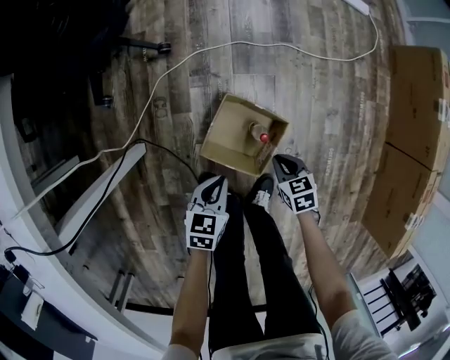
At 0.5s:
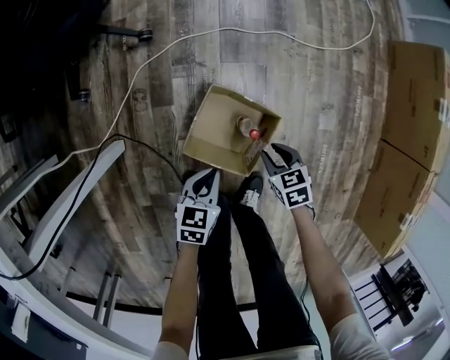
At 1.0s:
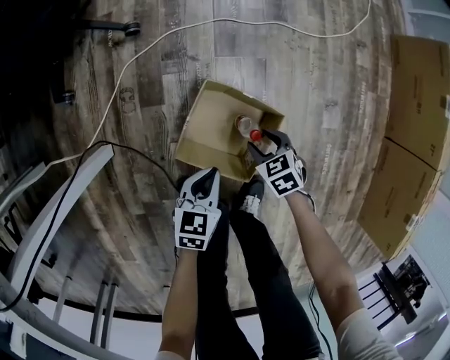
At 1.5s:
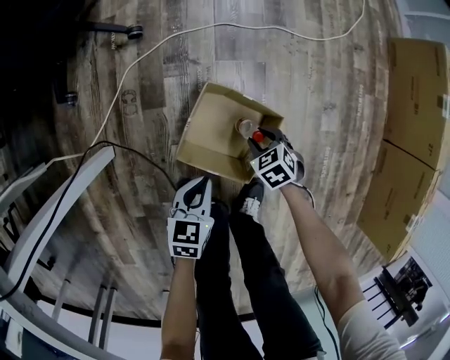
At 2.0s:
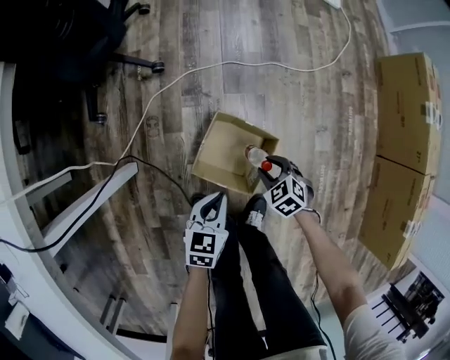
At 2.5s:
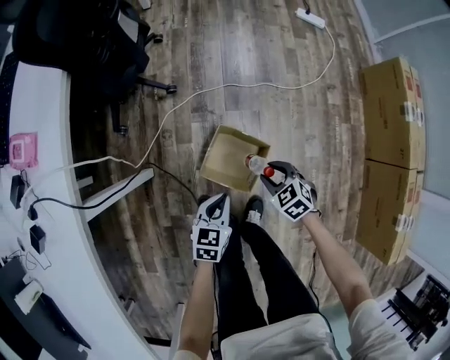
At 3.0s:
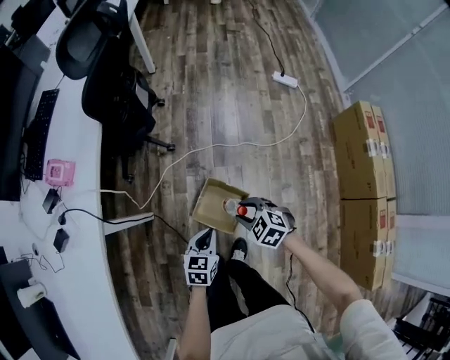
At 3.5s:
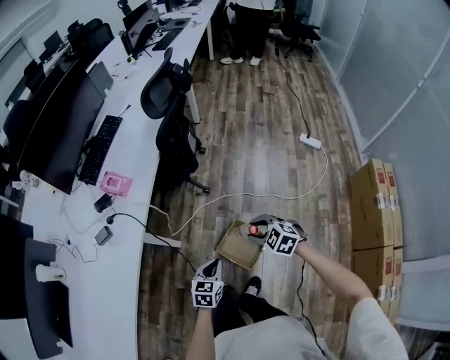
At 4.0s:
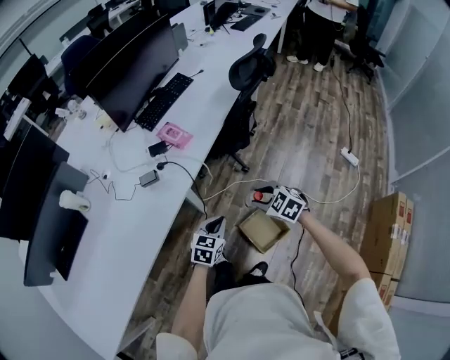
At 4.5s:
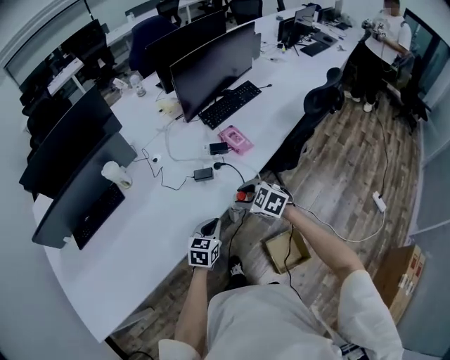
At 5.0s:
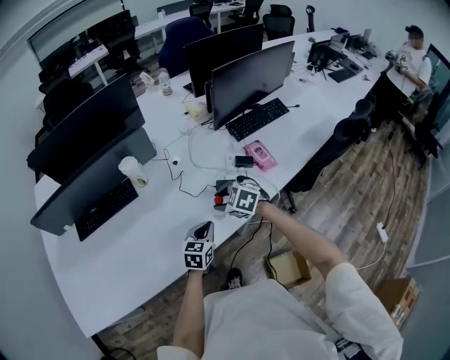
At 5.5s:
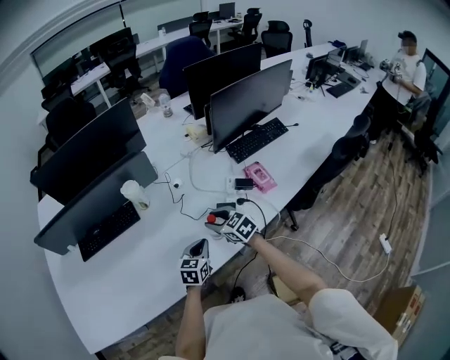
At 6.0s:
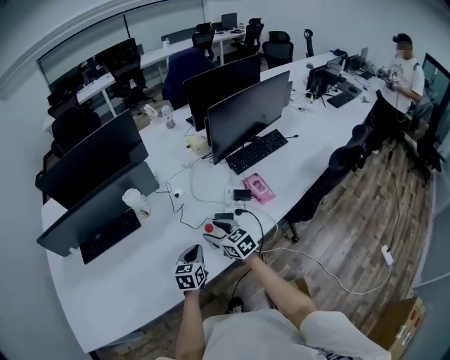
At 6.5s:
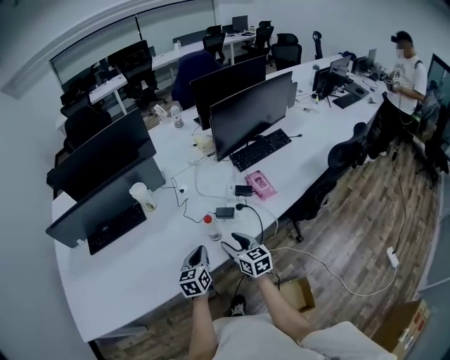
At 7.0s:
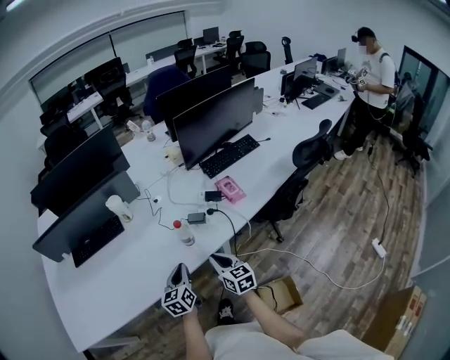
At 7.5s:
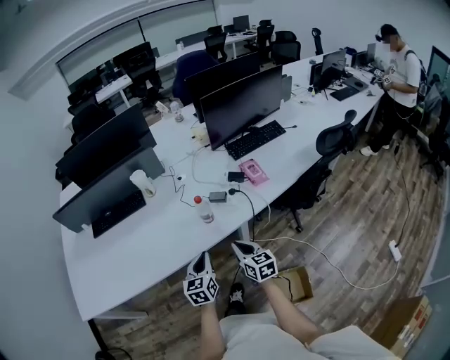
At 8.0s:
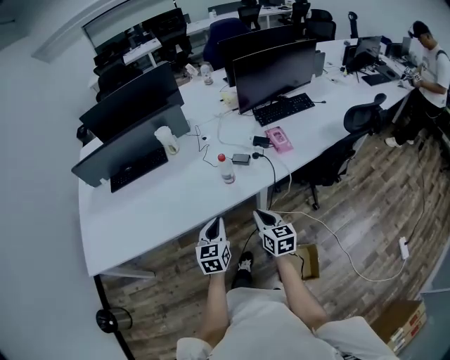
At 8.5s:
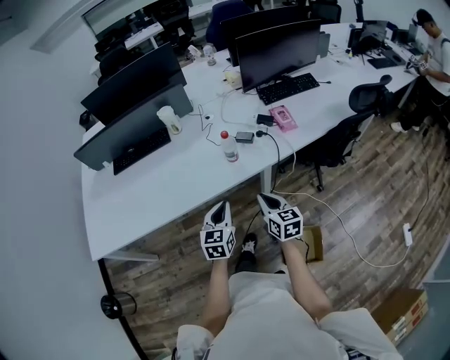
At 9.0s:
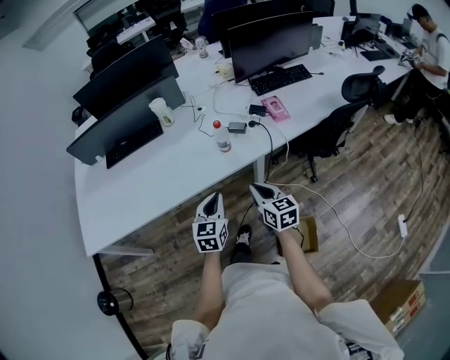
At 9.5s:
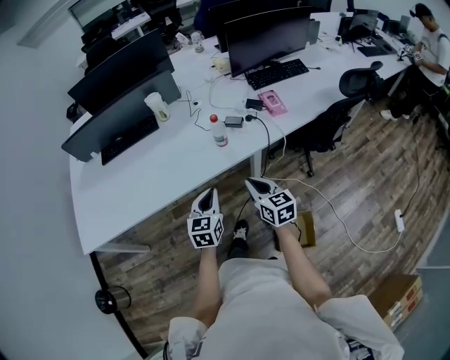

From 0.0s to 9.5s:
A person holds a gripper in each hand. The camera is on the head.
From 0.0s to 2.0s: The right gripper travels downward and back again, approximately 15 cm each way, swivels approximately 30 degrees, and opens. Meanwhile the left gripper reaches about 15 cm downward, then returns.
From 2.0s to 4.0s: The grippers both shift upward by about 50 cm. The left gripper turns by approximately 30 degrees. The right gripper rotates approximately 50 degrees.
From 4.0s to 5.5s: The right gripper ends up about 50 cm from where it was, and swivels approximately 30 degrees; the left gripper changes place by about 40 cm, and turns by some 40 degrees.
From 5.5s to 7.5s: The left gripper travels backward by roughly 20 cm, and swivels some 20 degrees. The right gripper goes some 25 cm backward and to the right, changes its angle by approximately 30 degrees, and closes up.
From 7.5s to 9.5s: Both grippers travel together backward, approximately 5 cm.

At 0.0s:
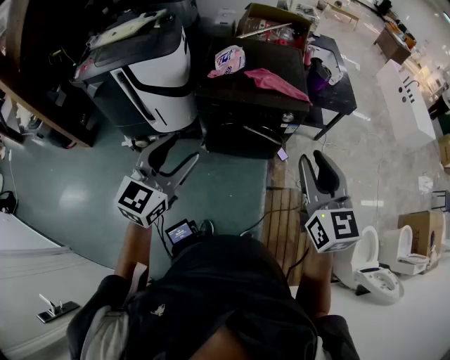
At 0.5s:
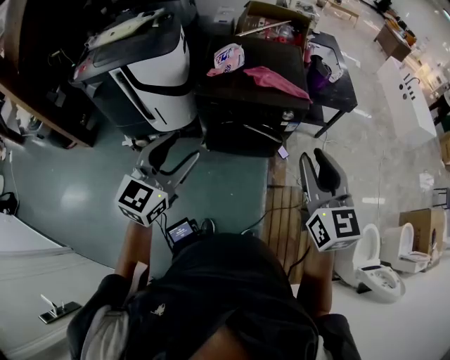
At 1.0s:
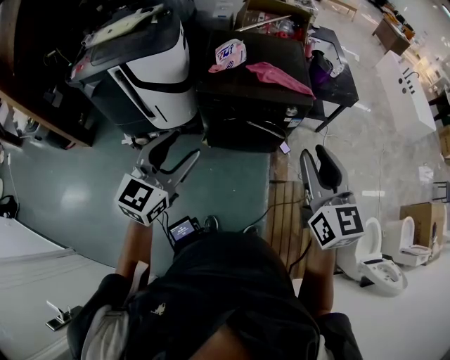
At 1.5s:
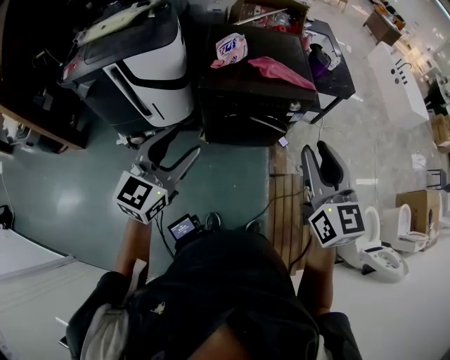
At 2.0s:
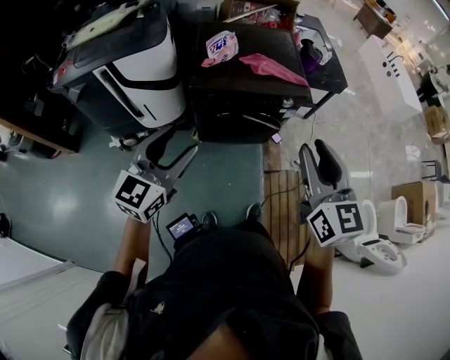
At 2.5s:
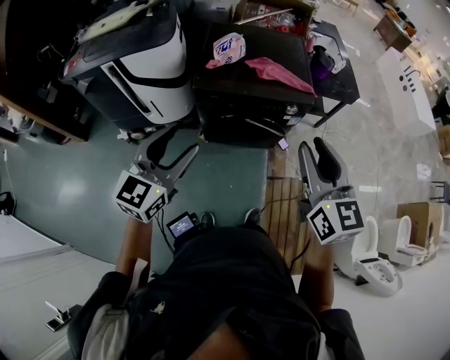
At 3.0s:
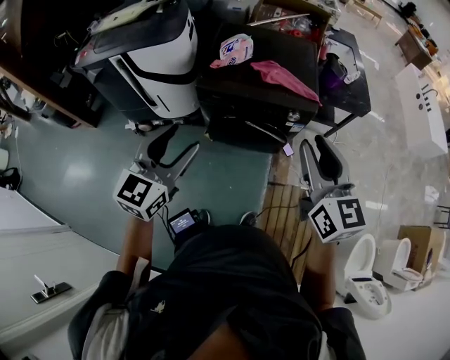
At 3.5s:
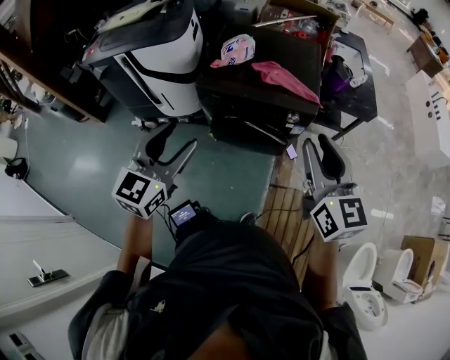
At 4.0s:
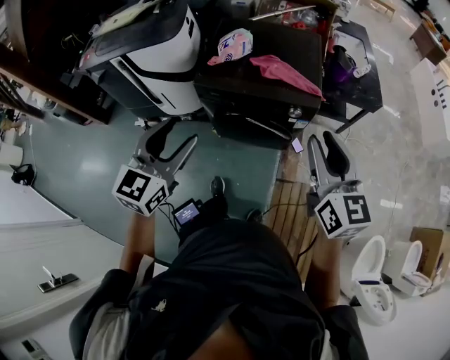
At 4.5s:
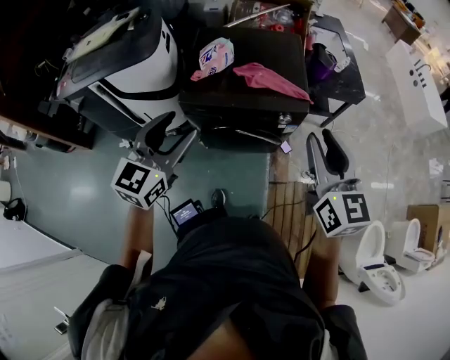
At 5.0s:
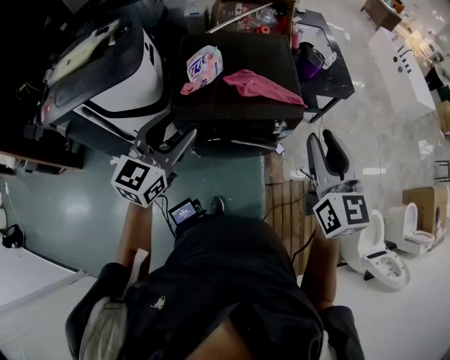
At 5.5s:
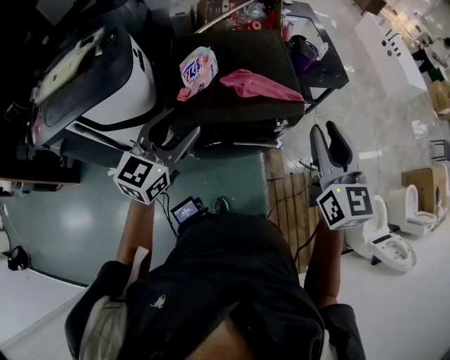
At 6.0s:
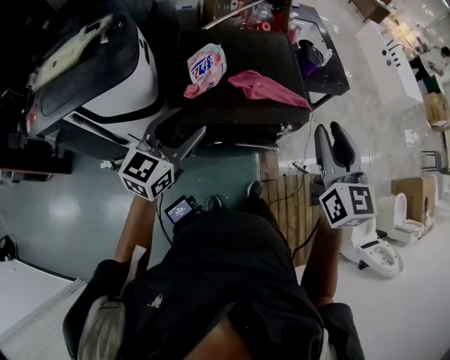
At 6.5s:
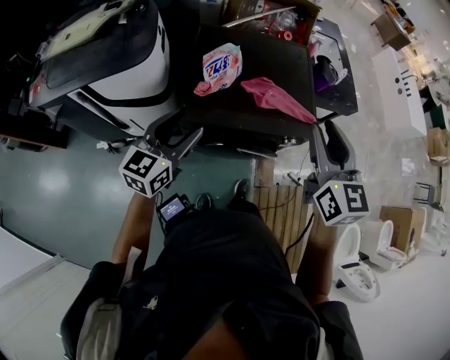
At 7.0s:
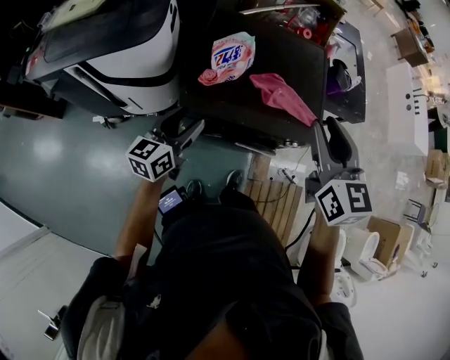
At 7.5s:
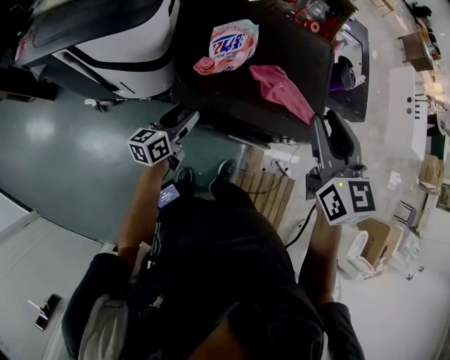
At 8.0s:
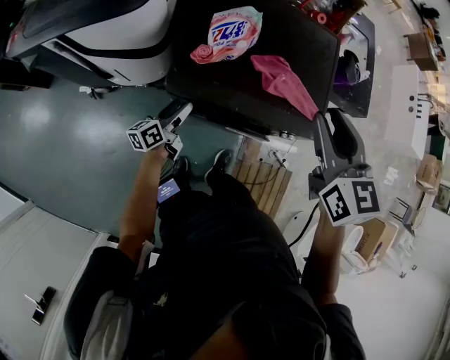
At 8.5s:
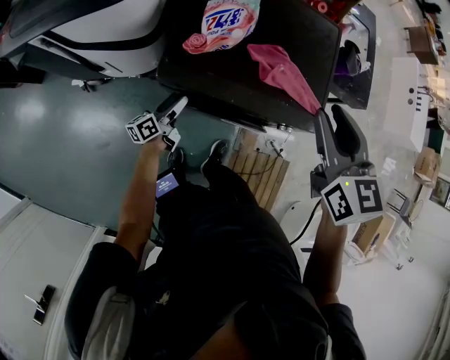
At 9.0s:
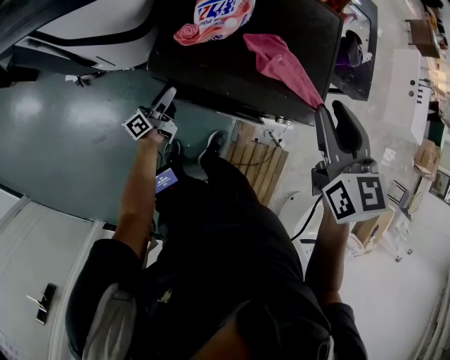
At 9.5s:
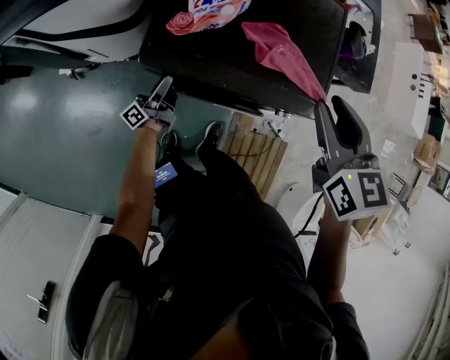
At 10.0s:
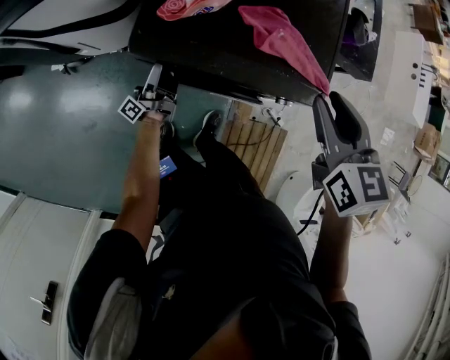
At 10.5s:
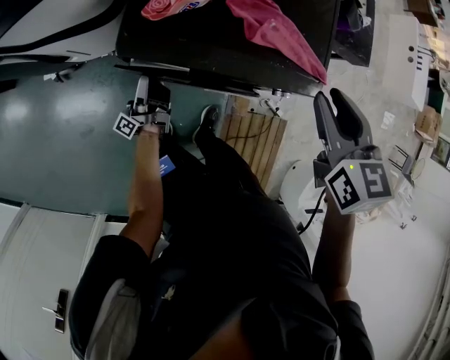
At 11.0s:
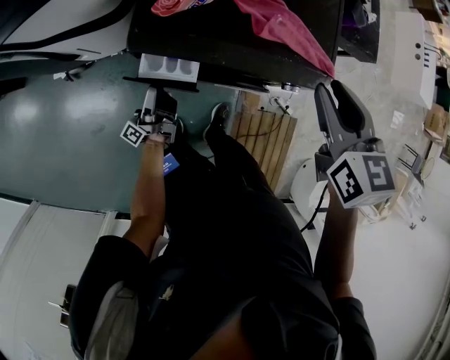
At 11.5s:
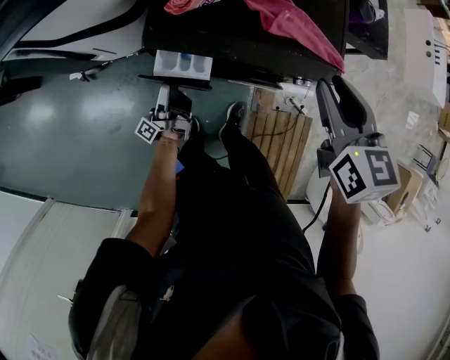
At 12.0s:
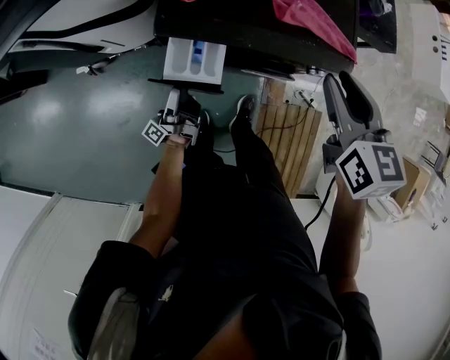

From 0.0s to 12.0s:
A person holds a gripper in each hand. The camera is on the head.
From 0.0s to 2.0s: The grippers both shift to the left by some 5 cm.
From 2.0s to 4.0s: The right gripper moves to the right and forward, some 20 cm, while the left gripper moves to the right, approximately 15 cm.
From 4.0s to 6.0s: Both grippers move forward and to the left, roughly 20 cm. The right gripper rotates about 20 degrees, while the left gripper rotates approximately 20 degrees.
From 6.0s to 8.0s: The right gripper goes some 20 cm forward, downward and to the left, and rotates roughly 30 degrees. The left gripper moves downward, roughly 30 cm, and twists some 50 degrees counterclockwise, seen from behind.
From 8.0s to 10.0s: The right gripper moves downward, about 10 cm. Meanwhile the left gripper goes approximately 5 cm downward, and angles its fingers upward, by about 30 degrees.
From 10.0s to 12.0s: The right gripper travels backward by about 5 cm. The left gripper heads backward, covering about 15 cm.

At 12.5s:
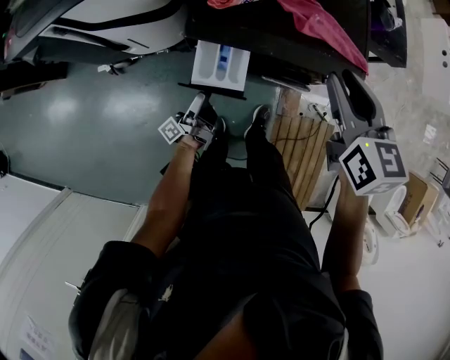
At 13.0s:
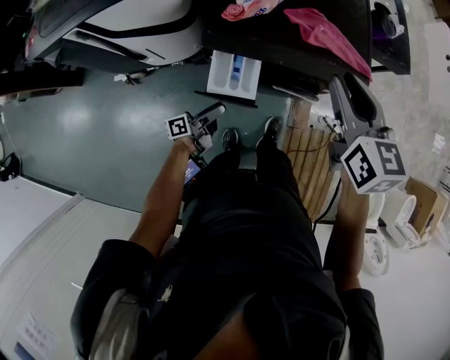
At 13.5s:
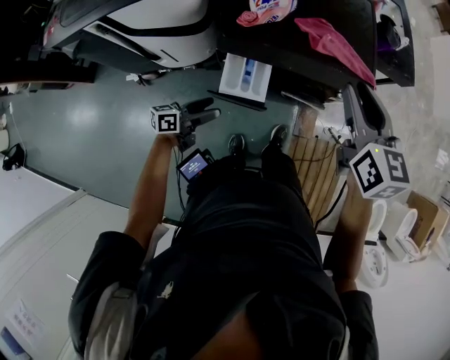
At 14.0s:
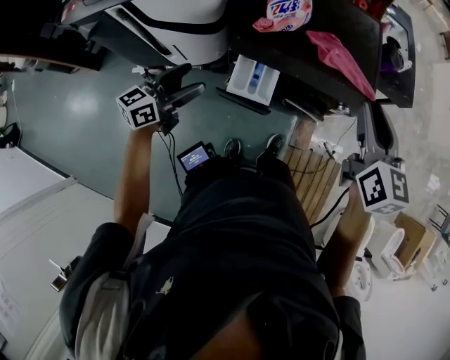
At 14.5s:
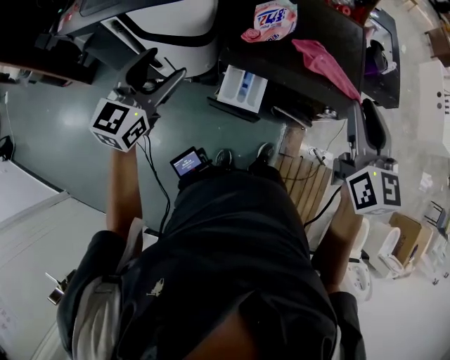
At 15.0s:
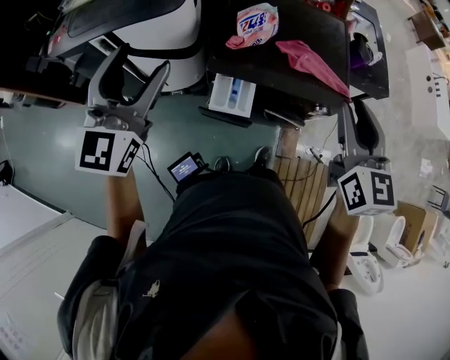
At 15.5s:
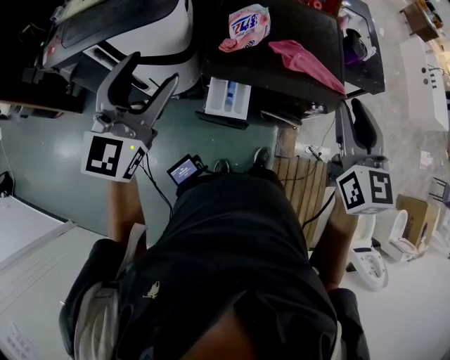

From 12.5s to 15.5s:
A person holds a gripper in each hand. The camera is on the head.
From 12.5s to 14.0s: The right gripper heads upward, covering about 10 cm, while the left gripper goes roughly 25 cm upward and to the left, and rotates around the line of its fingers by some 60 degrees, clockwise from behind.
From 14.0s to 15.5s: The right gripper goes approximately 5 cm upward, while the left gripper heads upward, covering roughly 25 cm, and twists roughly 40 degrees clockwise, seen from behind.

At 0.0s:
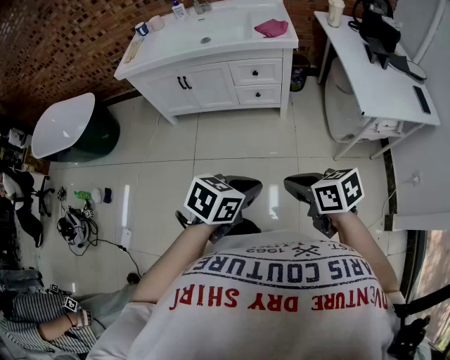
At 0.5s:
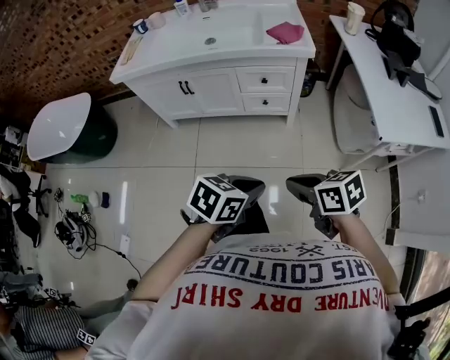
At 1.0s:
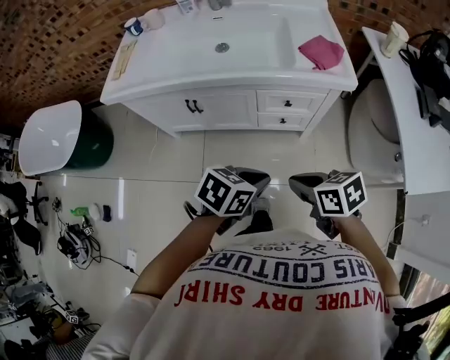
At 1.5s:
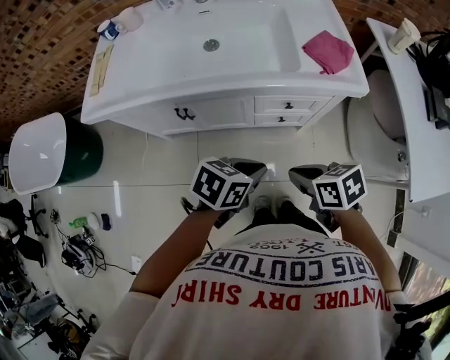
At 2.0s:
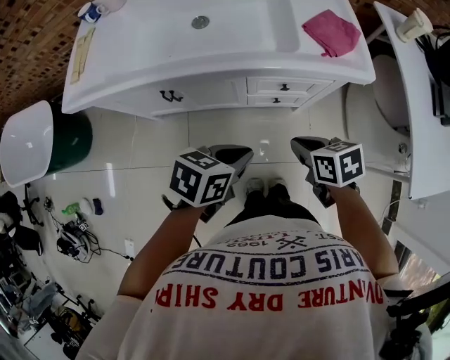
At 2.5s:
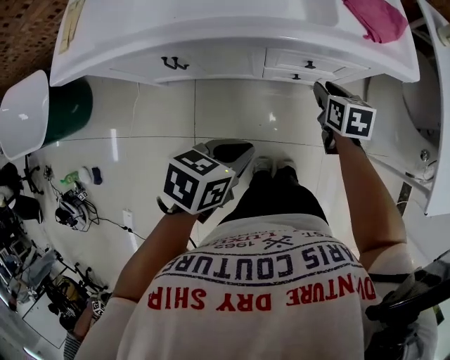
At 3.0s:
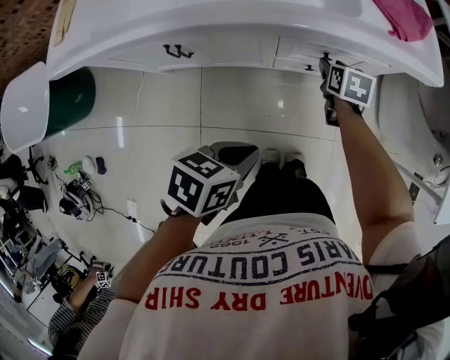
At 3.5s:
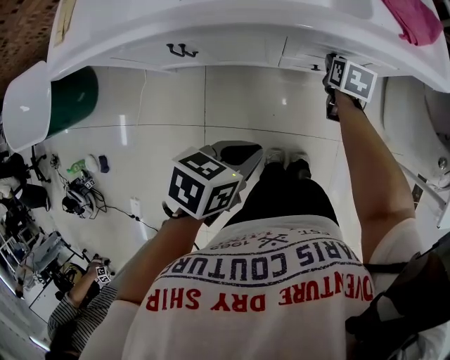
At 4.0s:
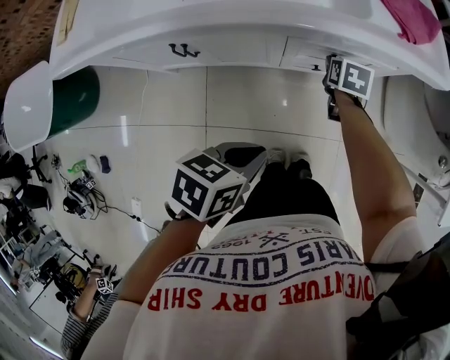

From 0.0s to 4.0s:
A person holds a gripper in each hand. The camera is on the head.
From 0.0s to 2.0s: The two grippers travel together, approximately 50 cm.
From 2.0s to 4.0s: The left gripper shifts some 10 cm downward, while the right gripper moves downward, about 20 cm, turns by about 30 degrees, and opens its fingers.
